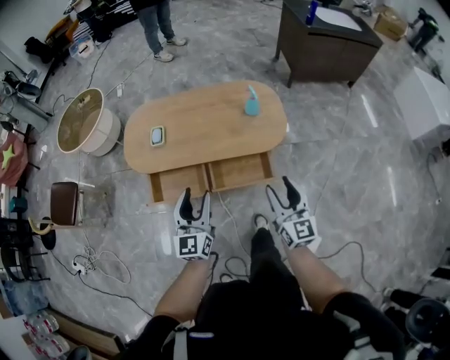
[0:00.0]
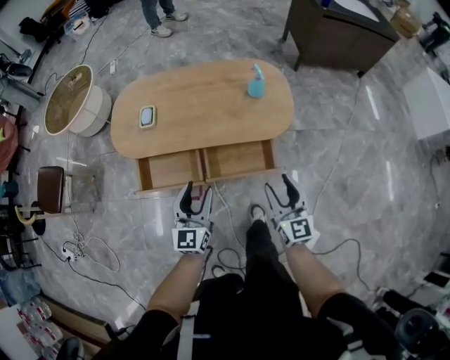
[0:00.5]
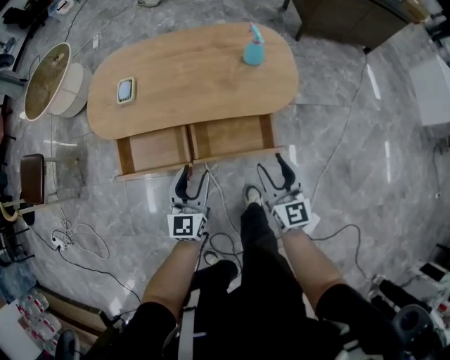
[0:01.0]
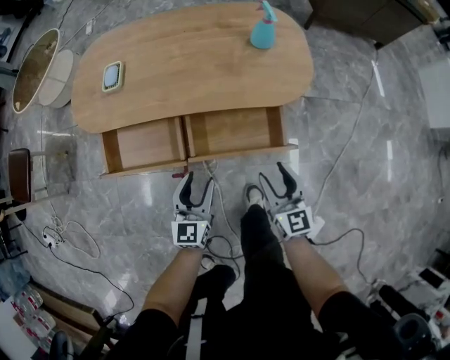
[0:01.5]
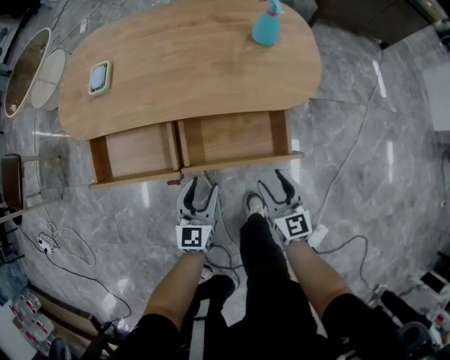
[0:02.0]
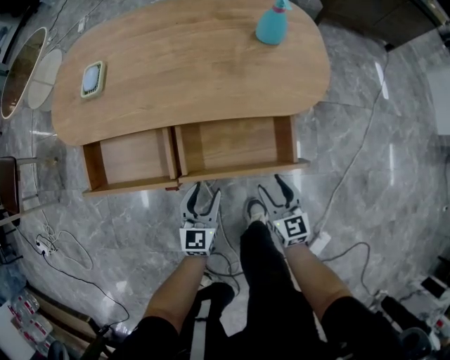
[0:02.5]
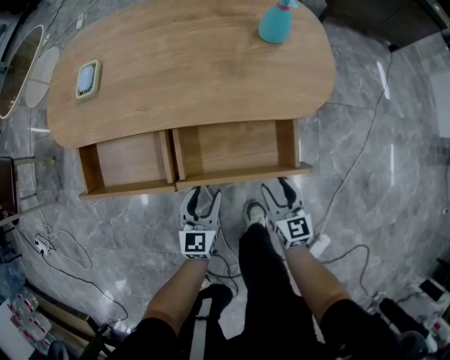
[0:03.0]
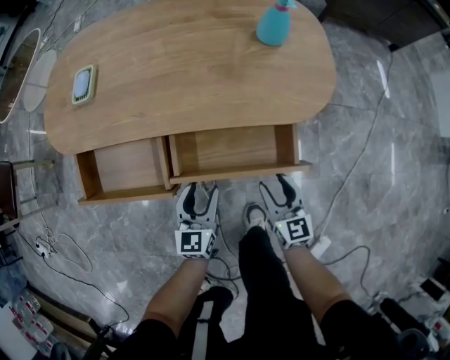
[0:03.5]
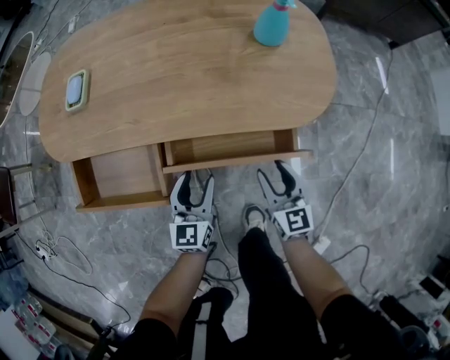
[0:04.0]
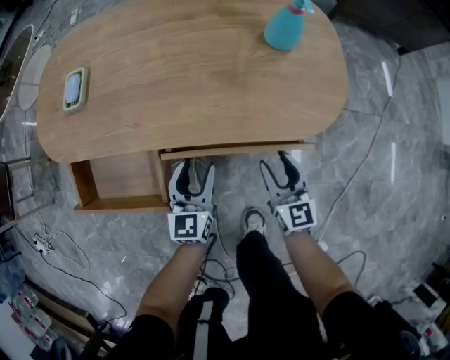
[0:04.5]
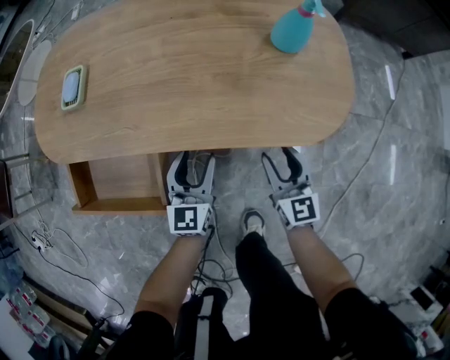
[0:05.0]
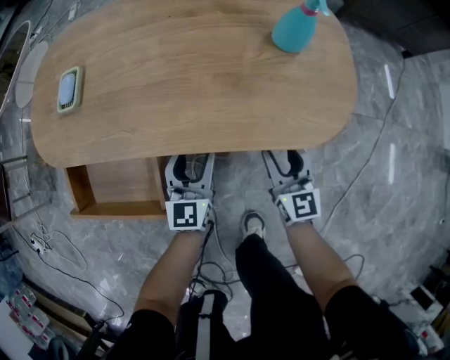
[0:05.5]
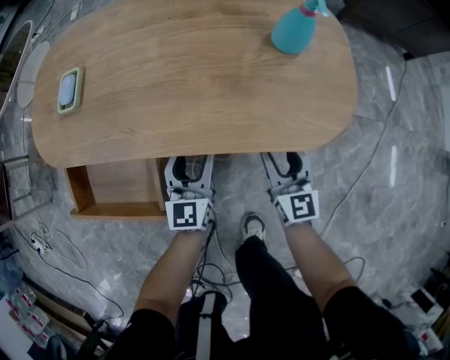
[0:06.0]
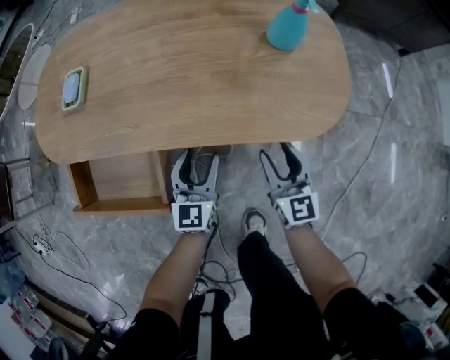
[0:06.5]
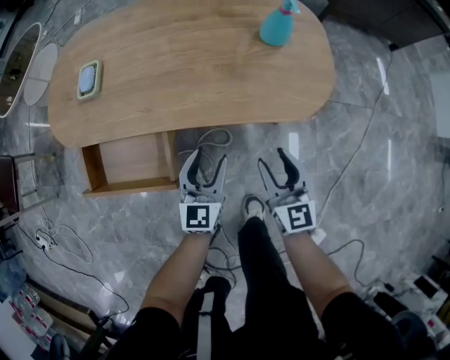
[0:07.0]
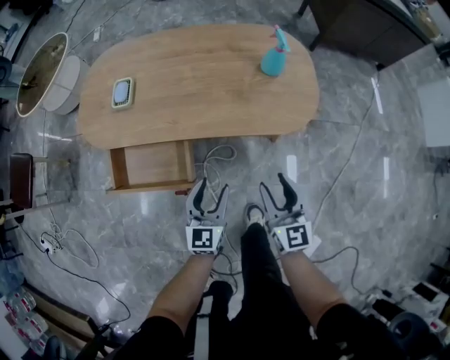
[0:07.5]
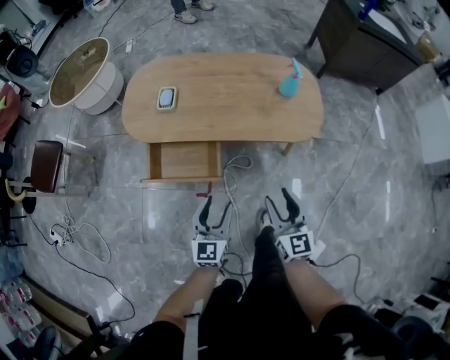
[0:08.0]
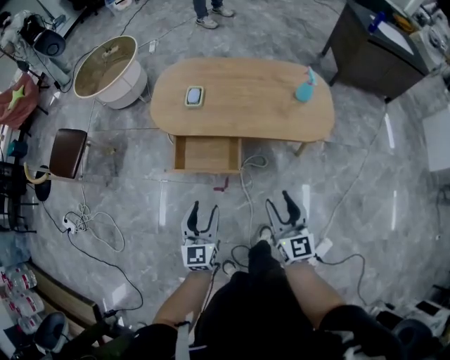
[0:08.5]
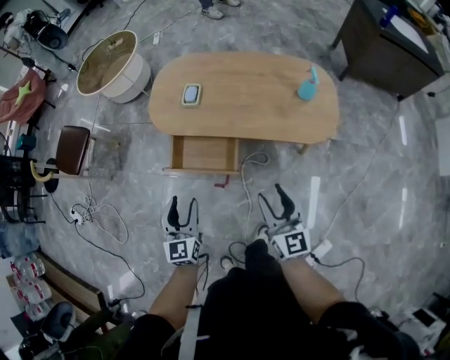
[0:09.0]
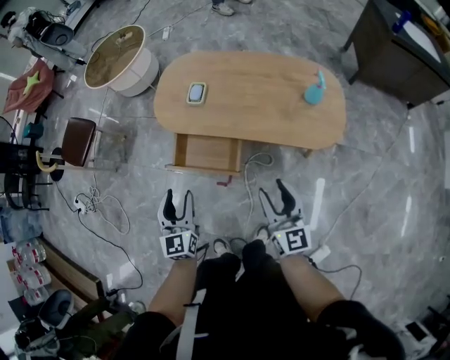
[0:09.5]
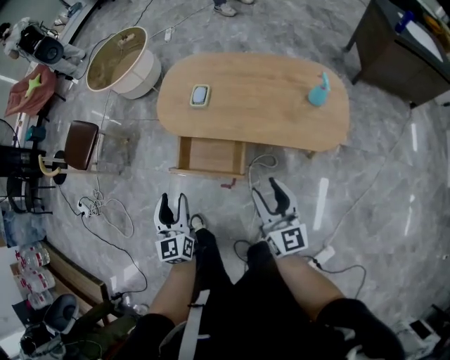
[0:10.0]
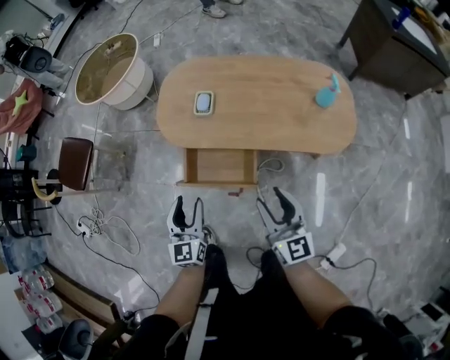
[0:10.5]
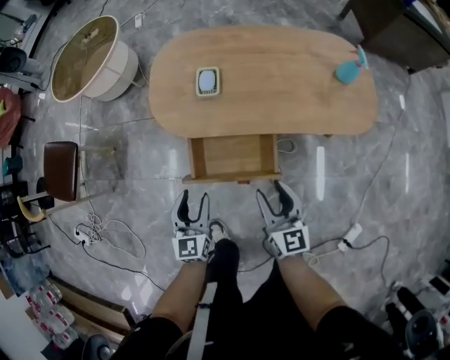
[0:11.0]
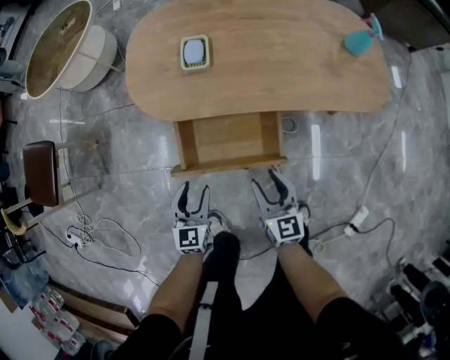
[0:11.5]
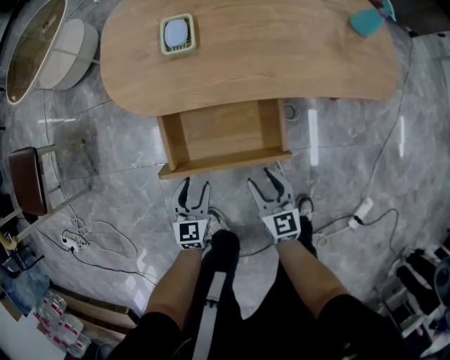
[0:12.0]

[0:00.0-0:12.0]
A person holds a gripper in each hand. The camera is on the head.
0:00.0 to 0:02.0: The two grippers go approximately 35 cm downward.
0:02.0 to 0:04.0: Both grippers move forward, roughly 10 cm.
0:04.0 to 0:06.0: The grippers both shift forward by roughly 10 cm.
0:06.0 to 0:08.0: The right gripper travels upward, backward and to the left by approximately 35 cm. Meanwhile the left gripper shifts roughly 35 cm backward, upward and to the left.
0:08.0 to 0:10.0: The right gripper is displaced upward, to the left and forward by some 15 cm, while the left gripper shifts some 20 cm to the left and upward, and turns by about 30 degrees.
0:10.0 to 0:12.0: The right gripper goes approximately 40 cm downward and to the left, and rotates approximately 30 degrees; the left gripper moves downward, some 35 cm, and swivels some 40 degrees.

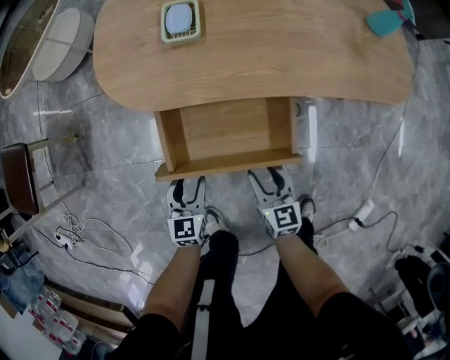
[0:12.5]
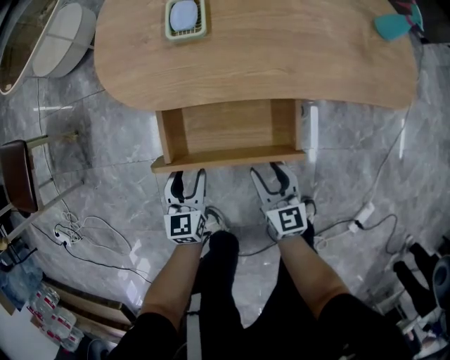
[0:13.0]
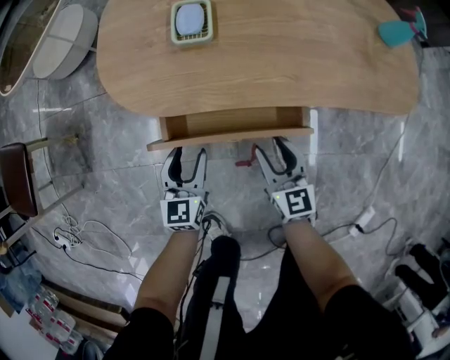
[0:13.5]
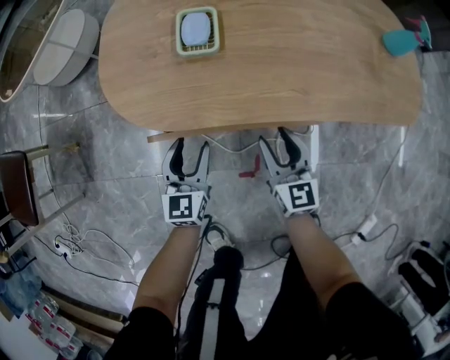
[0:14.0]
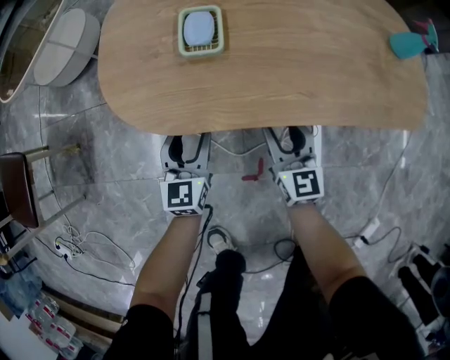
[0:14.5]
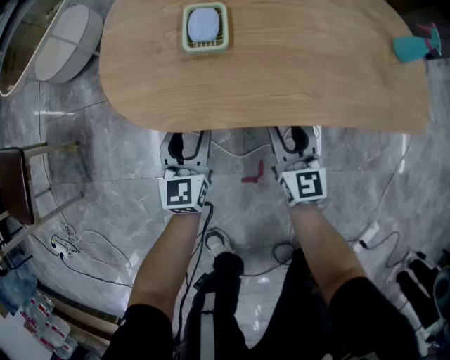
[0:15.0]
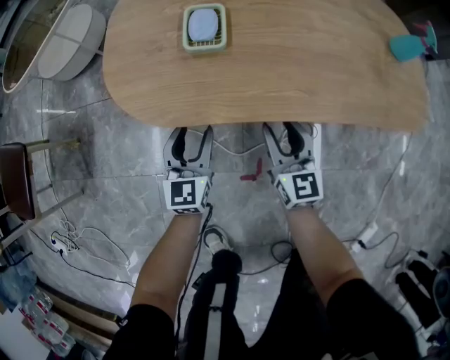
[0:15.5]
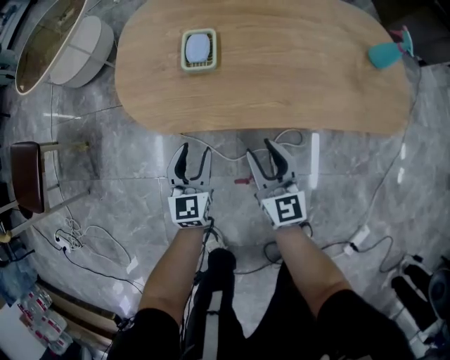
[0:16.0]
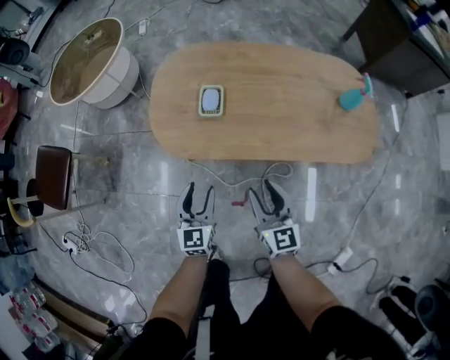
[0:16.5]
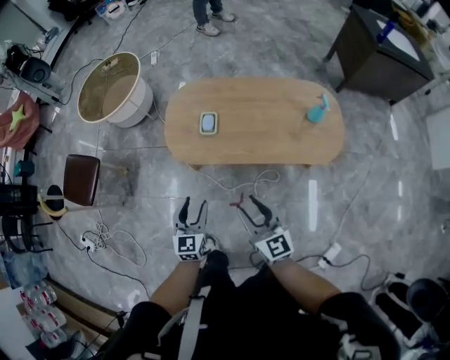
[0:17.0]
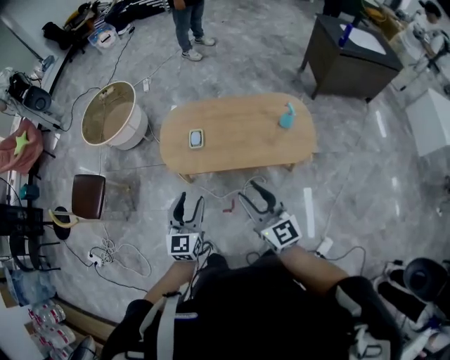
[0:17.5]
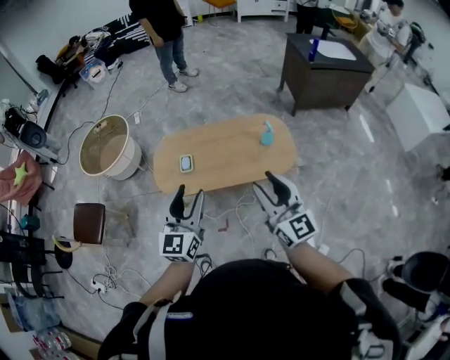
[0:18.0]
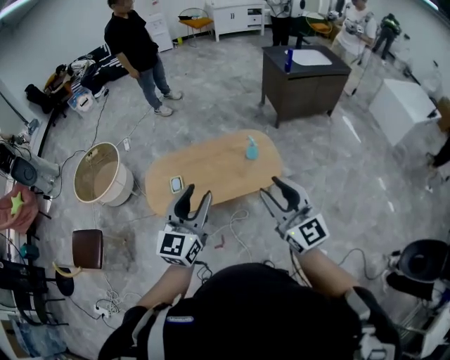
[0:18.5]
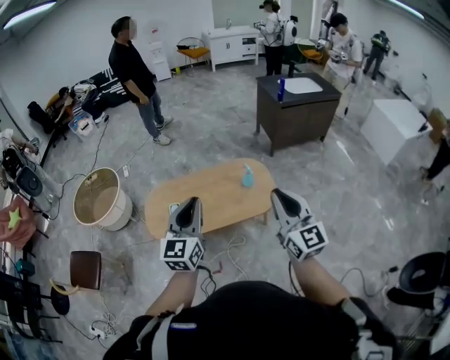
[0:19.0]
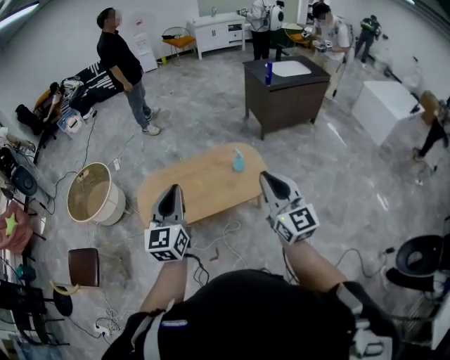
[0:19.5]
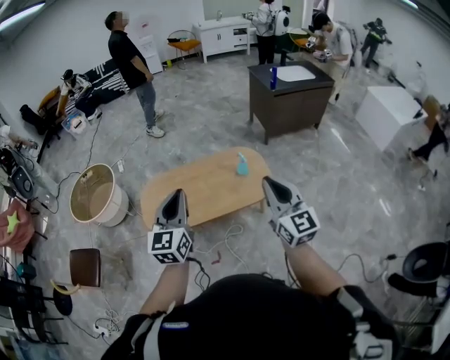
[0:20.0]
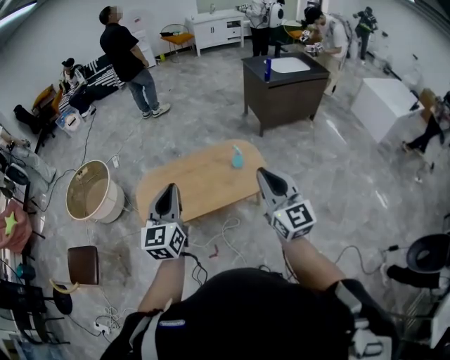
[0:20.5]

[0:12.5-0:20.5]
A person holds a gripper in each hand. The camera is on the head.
0:12.5 to 0:14.5: The two grippers go about 20 cm forward.
0:14.5 to 0:16.5: Both grippers move upward and backward, approximately 20 cm.
0:16.5 to 0:18.5: The left gripper shifts some 60 cm upward, and changes its angle by some 40 degrees, while the right gripper is displaced upward and to the right by about 60 cm, and turns by about 20 degrees.
0:18.5 to 0:20.5: The right gripper moves some 5 cm, and closes up; the left gripper shifts by some 5 cm, and closes its fingers.

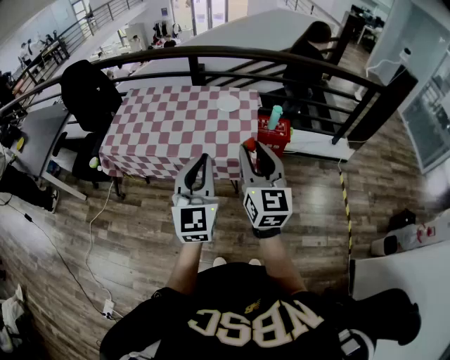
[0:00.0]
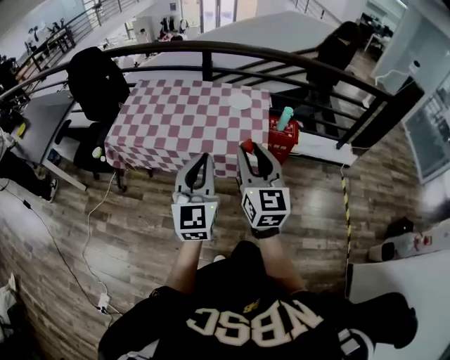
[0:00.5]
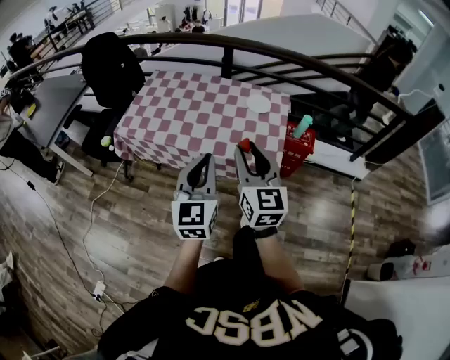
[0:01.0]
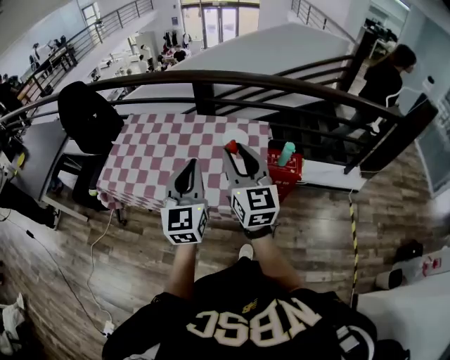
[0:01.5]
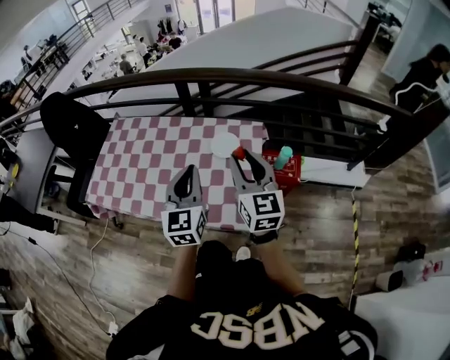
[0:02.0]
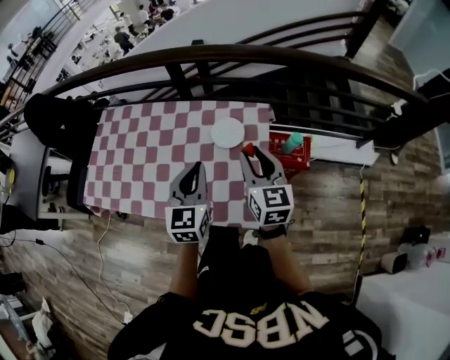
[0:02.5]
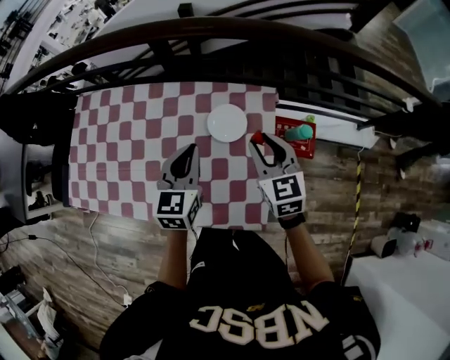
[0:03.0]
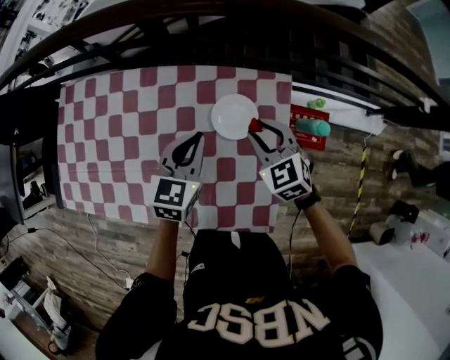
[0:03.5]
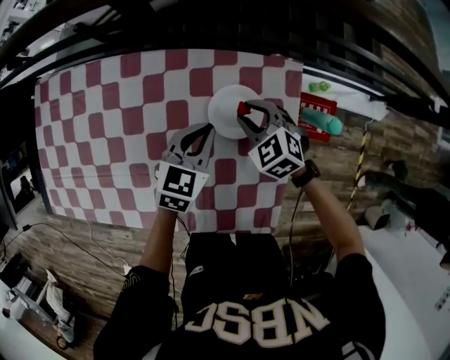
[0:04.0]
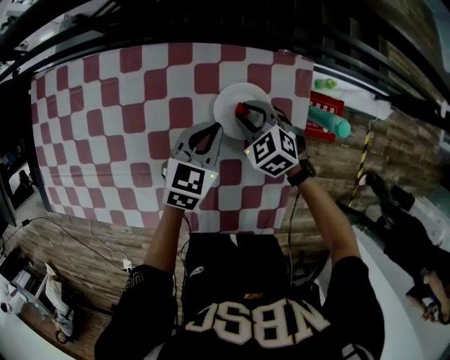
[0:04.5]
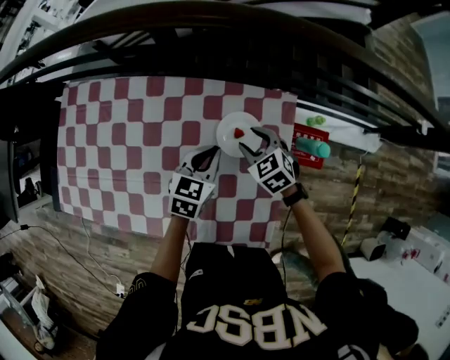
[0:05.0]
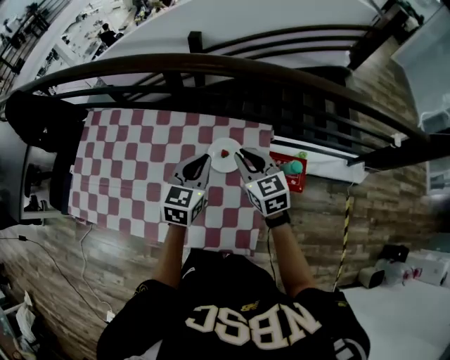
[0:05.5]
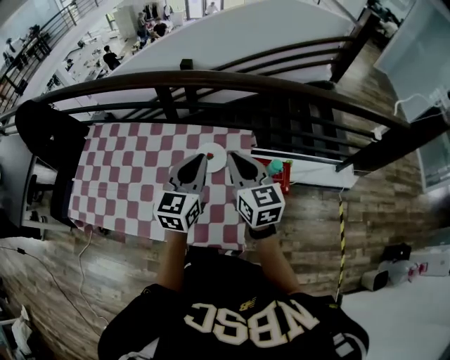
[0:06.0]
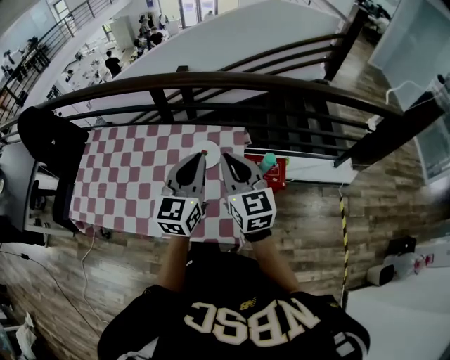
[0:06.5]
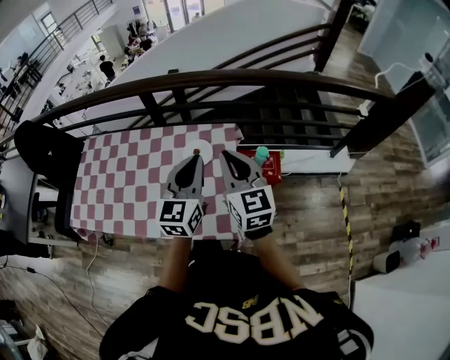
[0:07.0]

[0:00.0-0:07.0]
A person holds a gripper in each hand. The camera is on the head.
0:00.0 to 0:02.0: Both grippers travel together forward, approximately 35 cm.
0:02.0 to 0:03.5: The right gripper moves downward and forward, some 35 cm, and points its fingers approximately 40 degrees further downward; the left gripper heads forward and downward, covering about 30 cm, and rotates about 30 degrees.
0:03.5 to 0:05.0: Both grippers move downward, roughly 5 cm.
0:05.0 to 0:07.0: The two grippers go about 35 cm upward and backward. The left gripper tilts its fingers roughly 30 degrees upward; the right gripper angles its fingers upward, by some 50 degrees, and closes.
